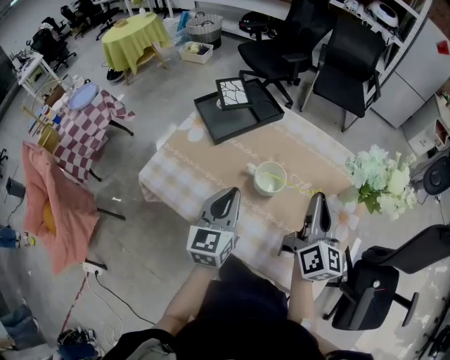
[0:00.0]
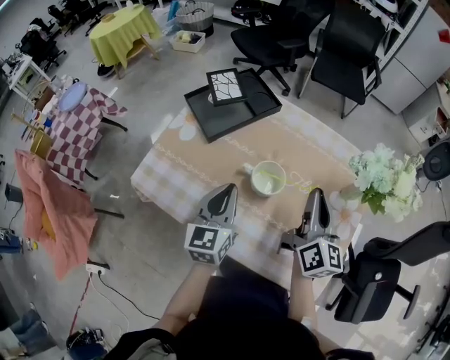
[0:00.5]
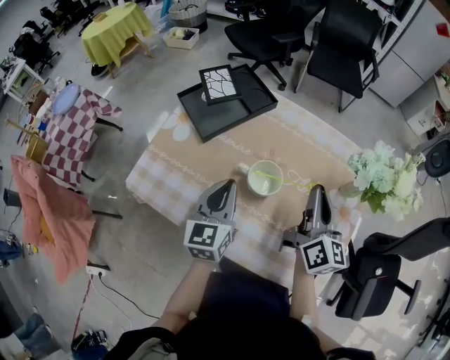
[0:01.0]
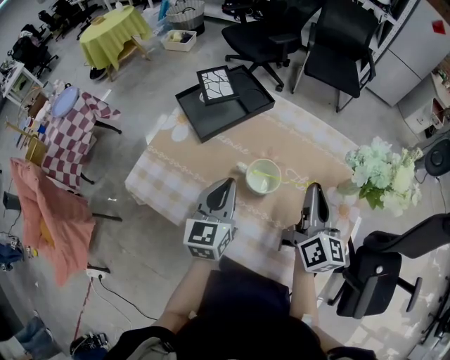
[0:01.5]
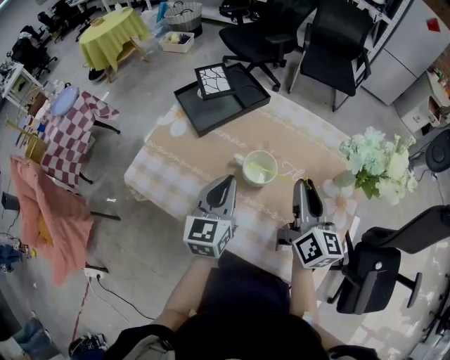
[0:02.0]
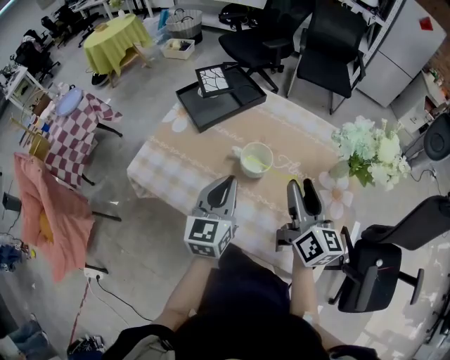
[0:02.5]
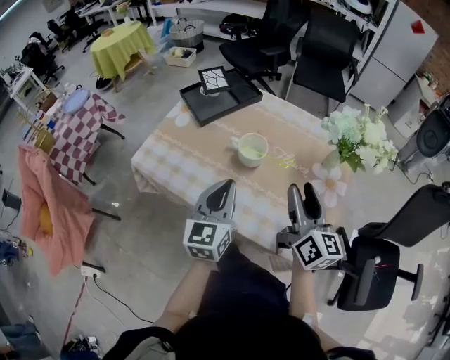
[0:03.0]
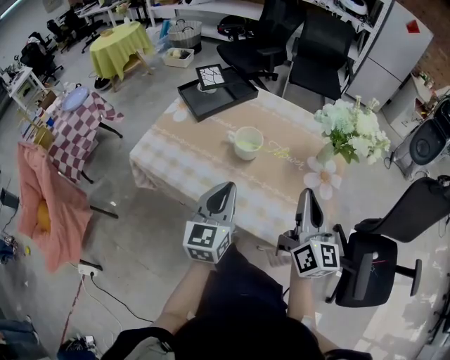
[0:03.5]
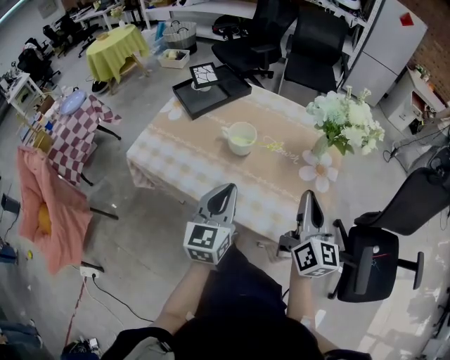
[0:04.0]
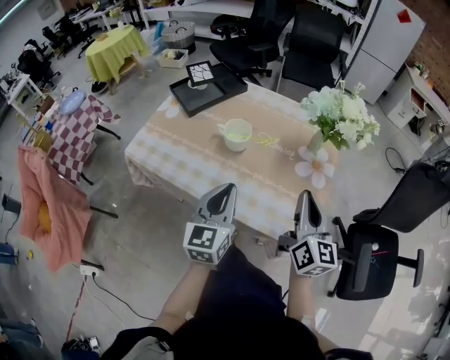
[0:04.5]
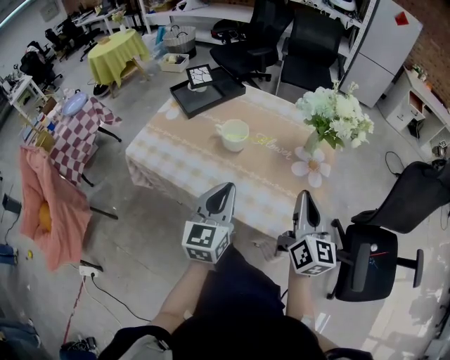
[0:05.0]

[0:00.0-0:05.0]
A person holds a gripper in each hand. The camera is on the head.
0:00.0 to 0:02.5: The right gripper opens.
0:02.5 to 0:05.0: Both grippers travel together backward and to the right, roughly 15 cm. The right gripper closes up.

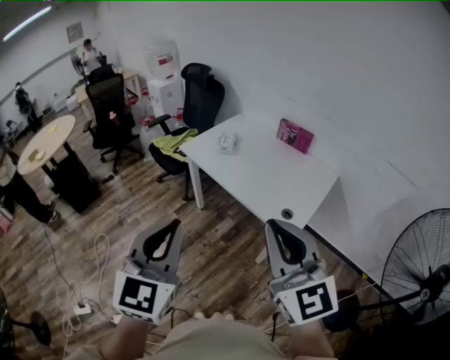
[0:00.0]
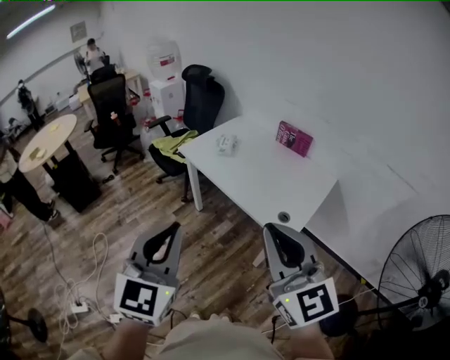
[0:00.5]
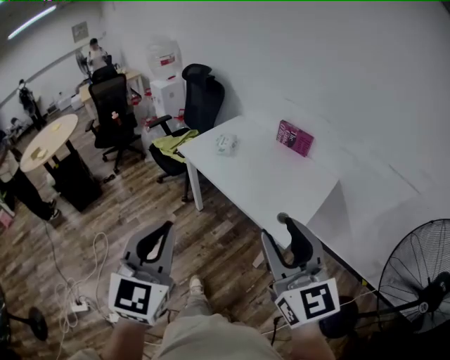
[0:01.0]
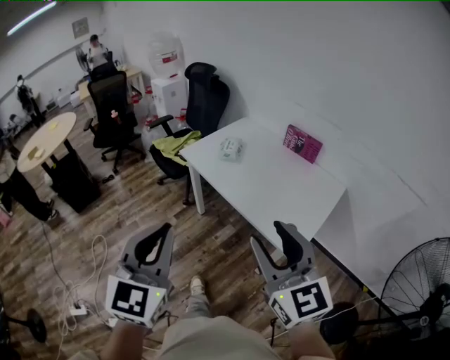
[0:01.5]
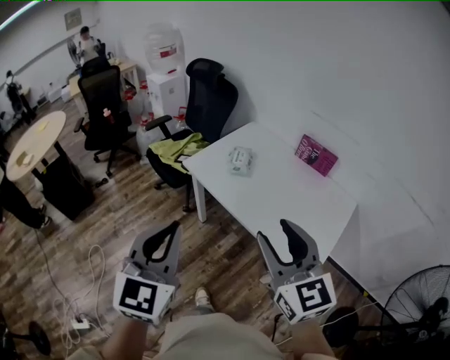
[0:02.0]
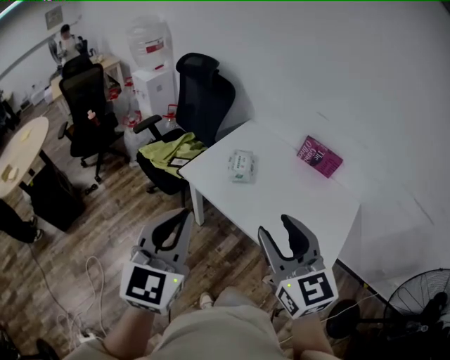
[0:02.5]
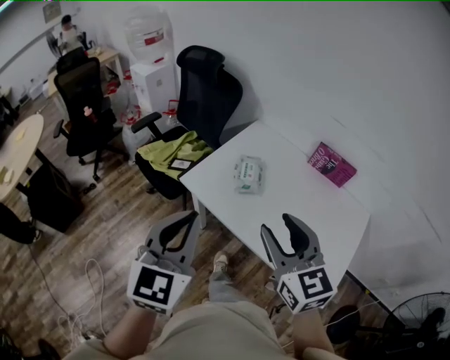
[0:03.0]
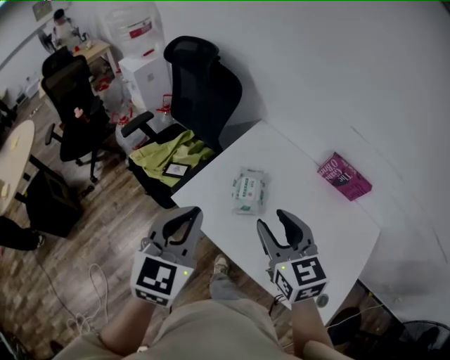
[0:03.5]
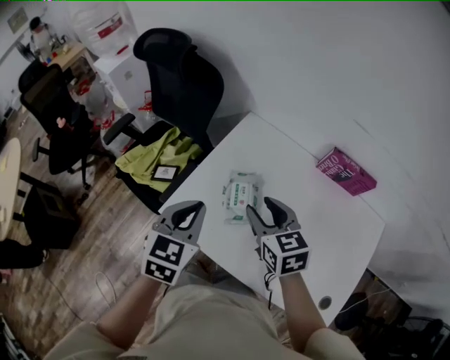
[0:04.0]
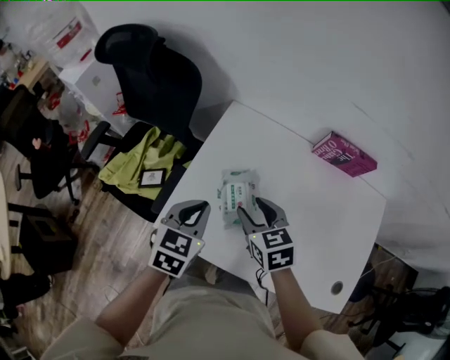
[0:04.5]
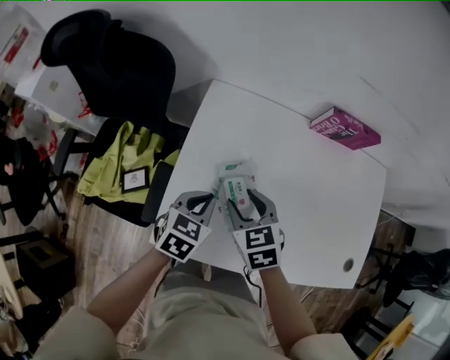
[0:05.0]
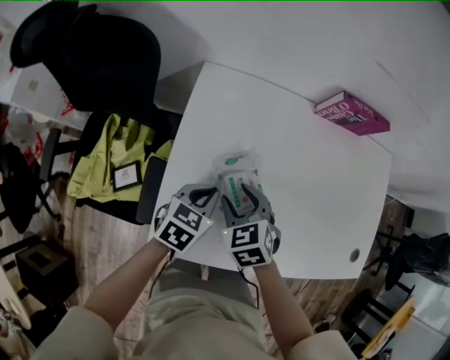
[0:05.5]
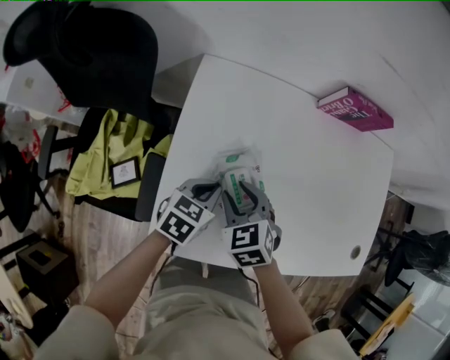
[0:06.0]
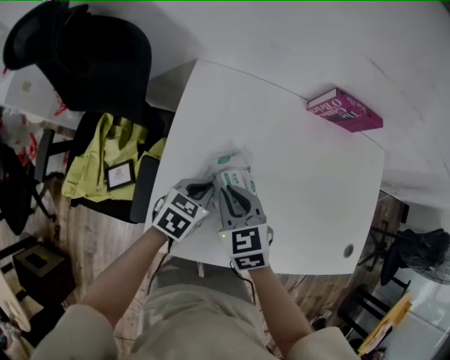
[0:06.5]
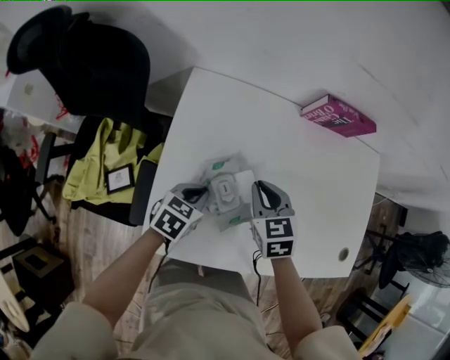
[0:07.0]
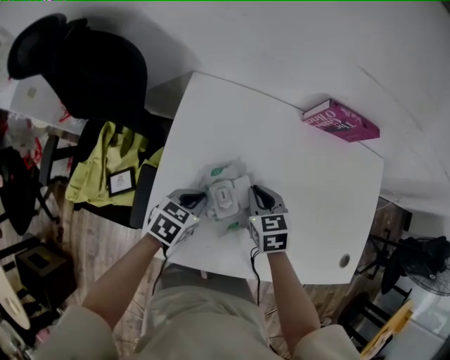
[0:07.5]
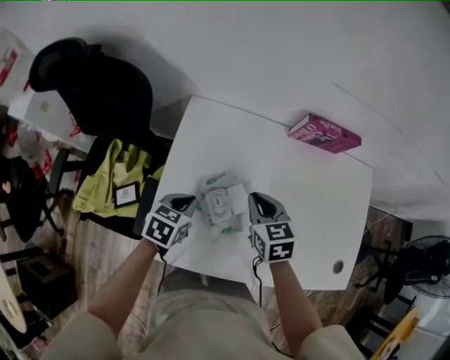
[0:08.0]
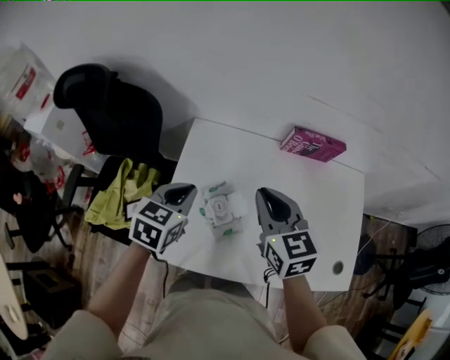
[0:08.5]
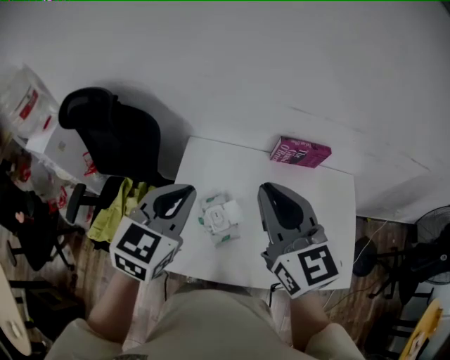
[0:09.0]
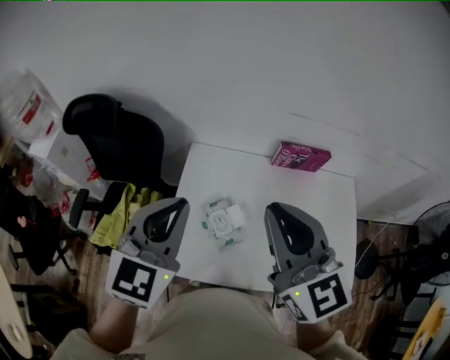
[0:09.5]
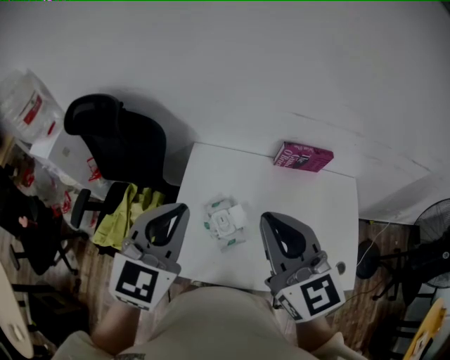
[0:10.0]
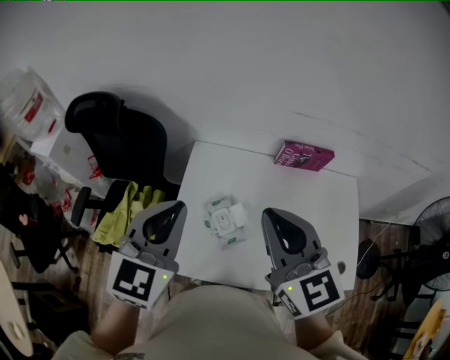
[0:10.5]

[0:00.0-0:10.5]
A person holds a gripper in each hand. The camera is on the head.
0:00.0 to 0:02.0: Both grippers travel together forward, approximately 25 cm. The right gripper opens up.
0:02.0 to 0:04.0: The two grippers travel together, forward, approximately 50 cm. The left gripper turns by some 30 degrees. Meanwhile the right gripper shifts about 25 cm downward, and changes its angle by about 30 degrees.
0:04.0 to 0:06.5: The right gripper is displaced downward by about 15 cm, swivels approximately 20 degrees, and closes its fingers, while the left gripper shifts approximately 25 cm downward, and turns by roughly 50 degrees.
0:06.5 to 0:08.5: The left gripper moves upward, approximately 20 cm. Meanwhile the right gripper shifts about 25 cm upward and to the right, and changes its angle by some 20 degrees.
0:08.5 to 0:10.5: The right gripper heads upward and backward, covering about 15 cm, while the left gripper shifts some 20 cm upward, and rotates about 30 degrees.

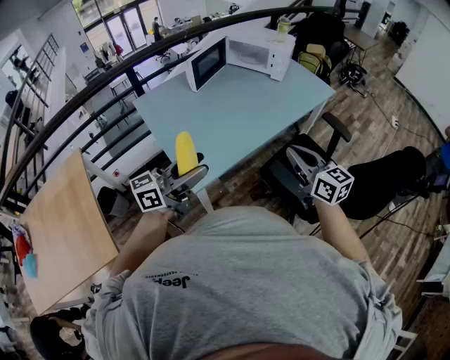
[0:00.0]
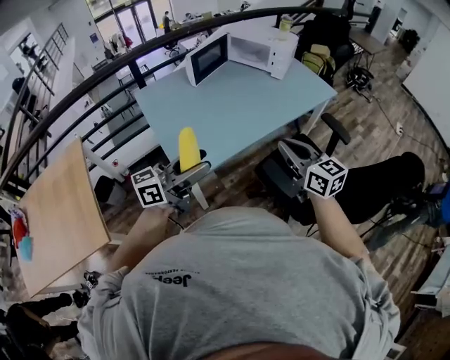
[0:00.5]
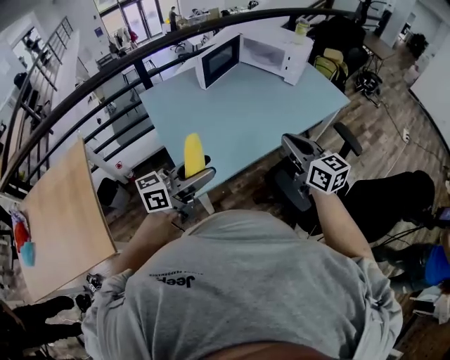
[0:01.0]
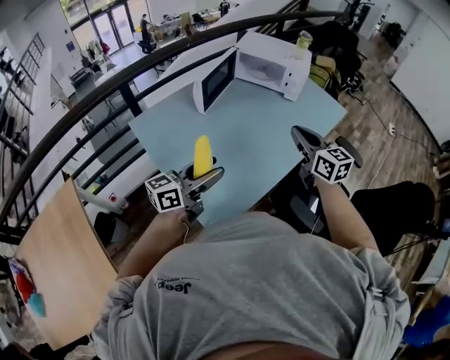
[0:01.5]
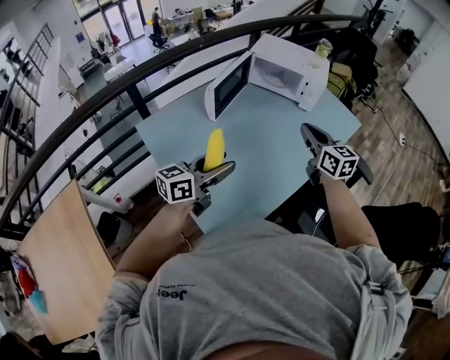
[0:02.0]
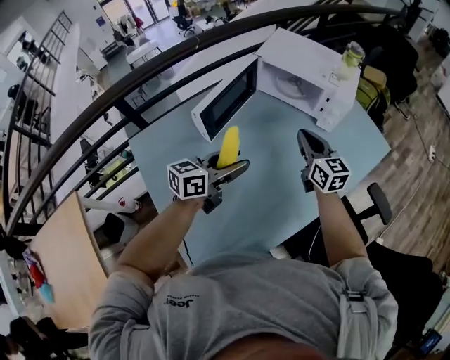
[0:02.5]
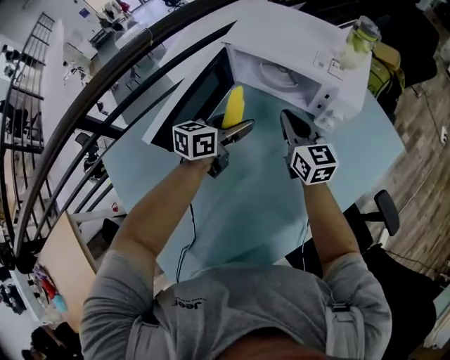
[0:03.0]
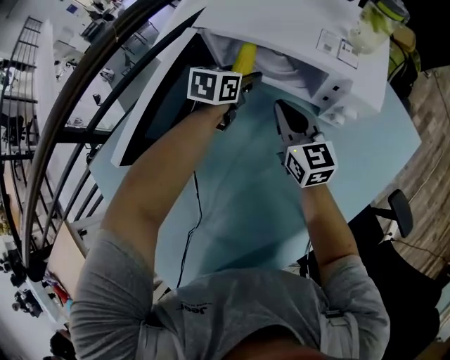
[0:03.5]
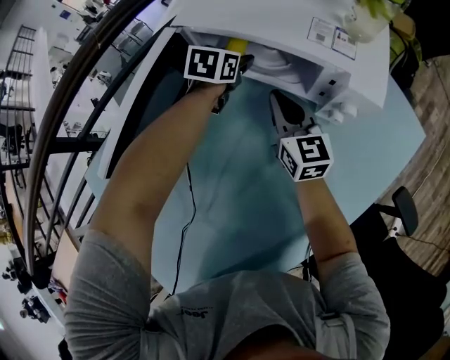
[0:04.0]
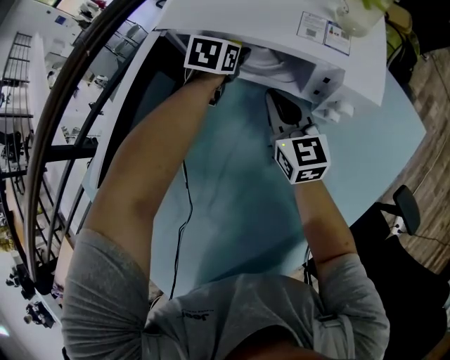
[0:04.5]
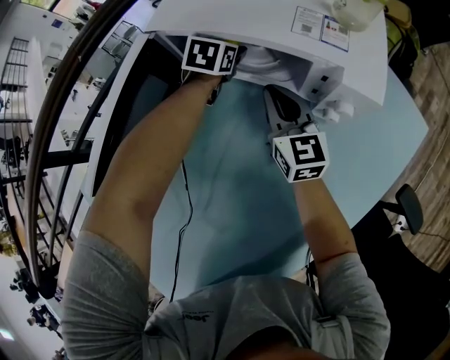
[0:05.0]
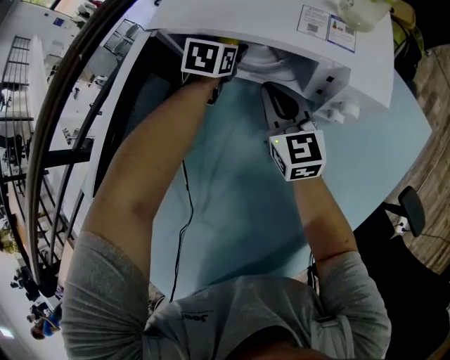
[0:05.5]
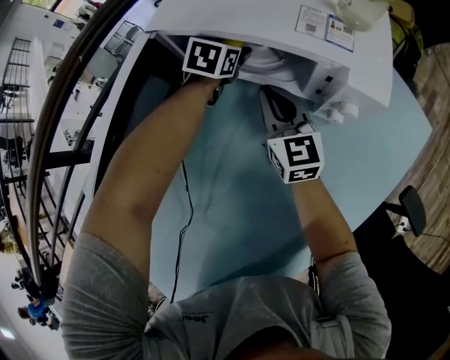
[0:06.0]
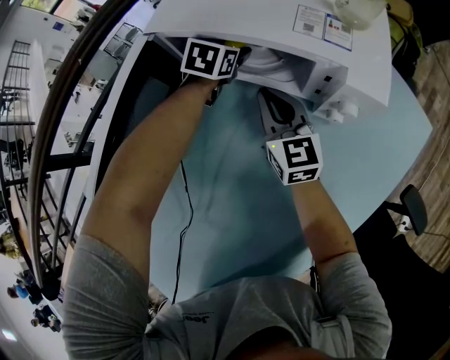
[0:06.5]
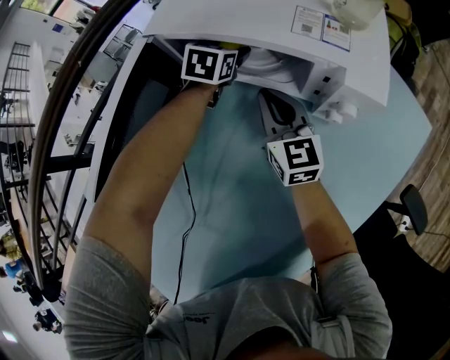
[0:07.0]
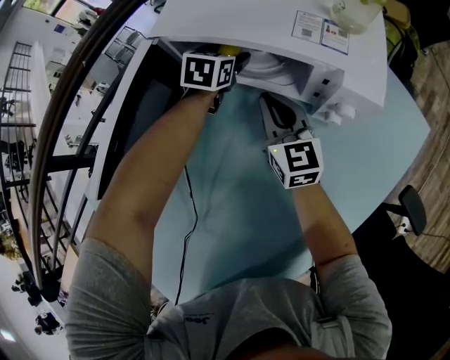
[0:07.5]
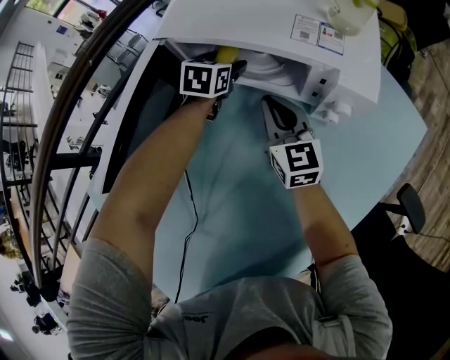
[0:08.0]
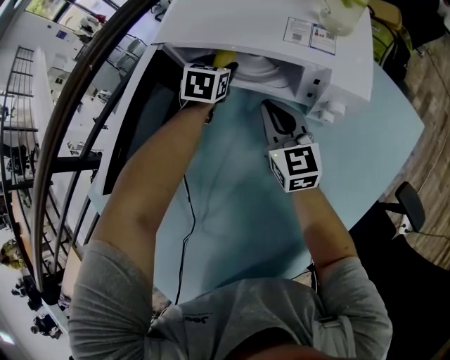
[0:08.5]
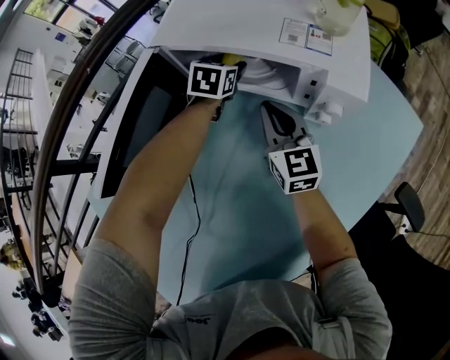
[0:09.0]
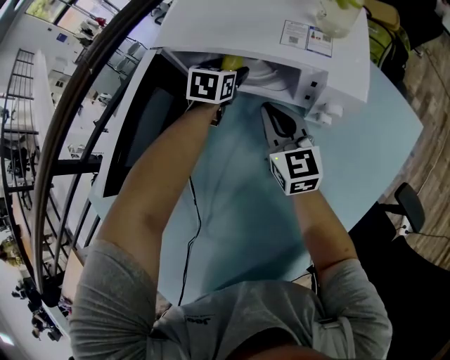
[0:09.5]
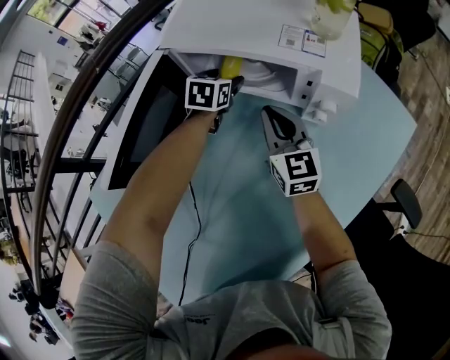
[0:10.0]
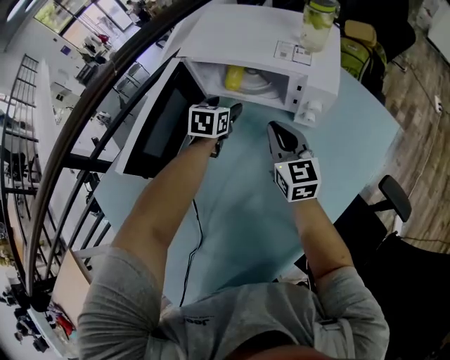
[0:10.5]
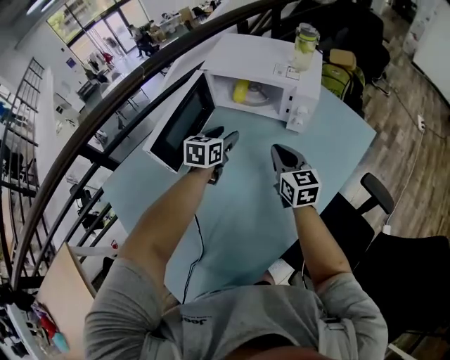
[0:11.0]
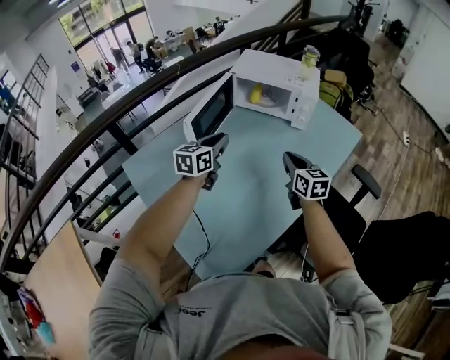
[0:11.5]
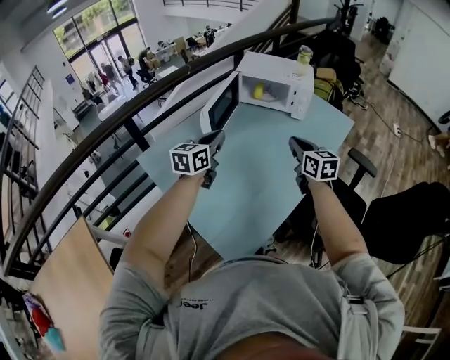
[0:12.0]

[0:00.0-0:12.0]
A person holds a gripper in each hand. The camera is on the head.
0:00.0 to 0:02.0: Both grippers move forward and to the left, roughly 35 cm.
0:02.0 to 0:04.0: The pair of grippers is taken forward, approximately 50 cm. The left gripper angles its fingers downward, by roughly 40 degrees, while the right gripper travels downward by some 25 cm.
0:04.0 to 0:10.0: The grippers move only a little.
0:10.0 to 0:12.0: Both grippers travel together backward and upward, some 50 cm. The left gripper rotates about 30 degrees, and closes its fingers.
